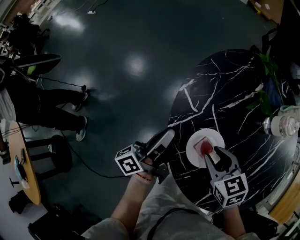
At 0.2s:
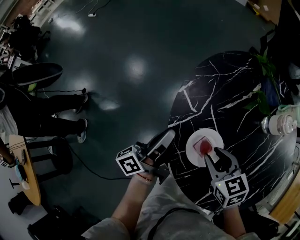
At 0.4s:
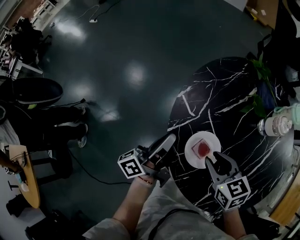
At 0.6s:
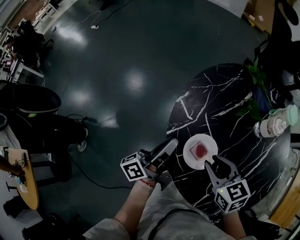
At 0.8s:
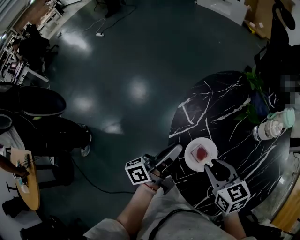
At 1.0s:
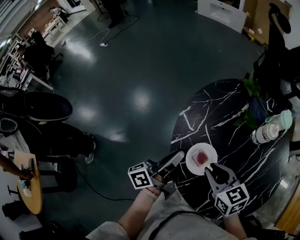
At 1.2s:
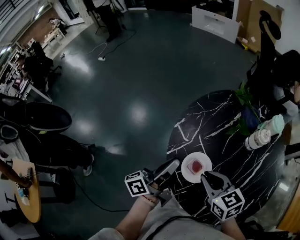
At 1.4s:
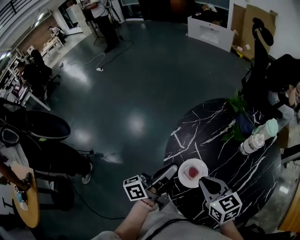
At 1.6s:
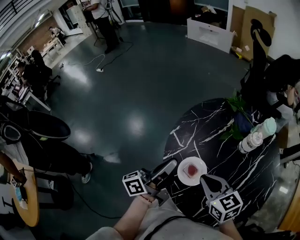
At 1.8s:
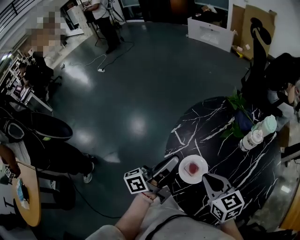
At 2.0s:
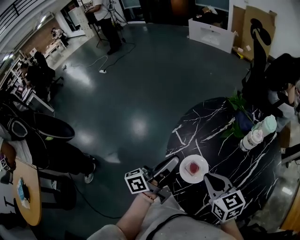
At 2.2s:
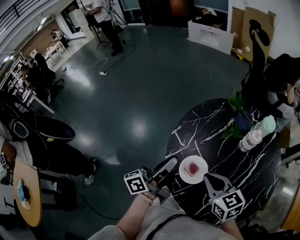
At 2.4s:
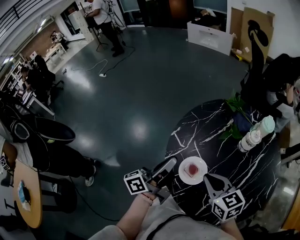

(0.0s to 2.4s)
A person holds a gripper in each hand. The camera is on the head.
0.0s - 1.2s: The grippers both shift upward by approximately 10 cm.
1.2s - 2.4s: The grippers stay close to where they were, moving slightly.

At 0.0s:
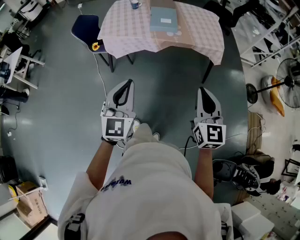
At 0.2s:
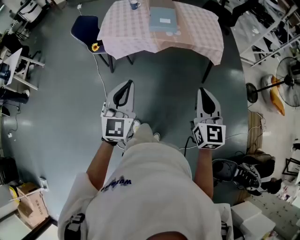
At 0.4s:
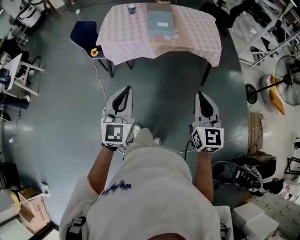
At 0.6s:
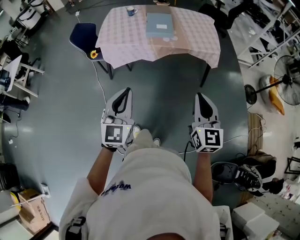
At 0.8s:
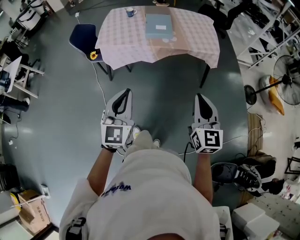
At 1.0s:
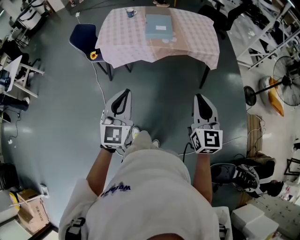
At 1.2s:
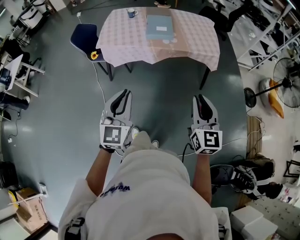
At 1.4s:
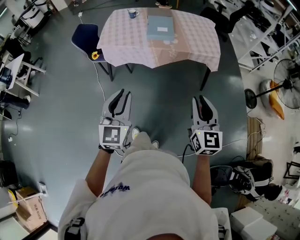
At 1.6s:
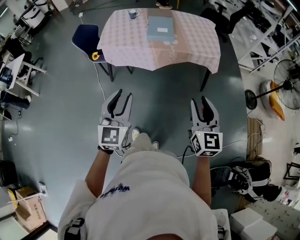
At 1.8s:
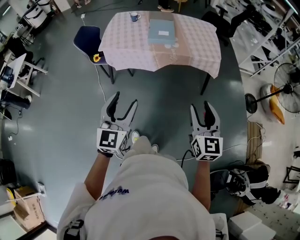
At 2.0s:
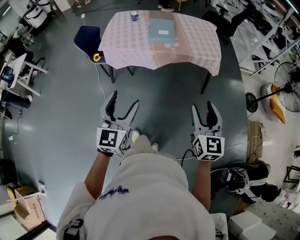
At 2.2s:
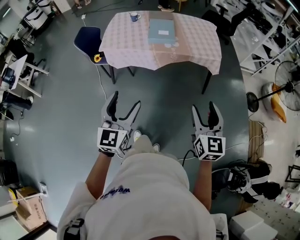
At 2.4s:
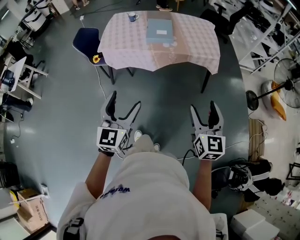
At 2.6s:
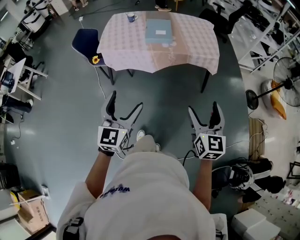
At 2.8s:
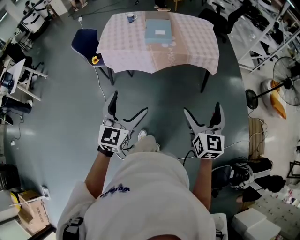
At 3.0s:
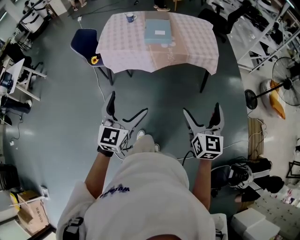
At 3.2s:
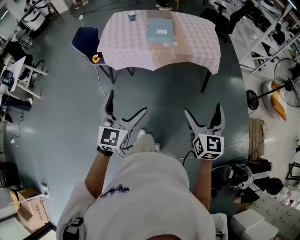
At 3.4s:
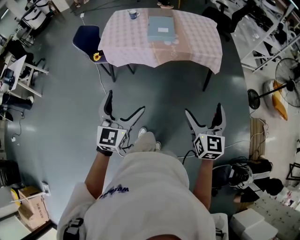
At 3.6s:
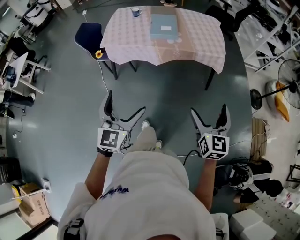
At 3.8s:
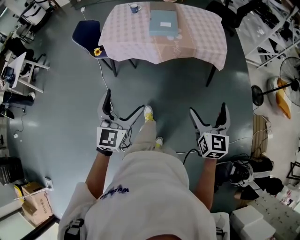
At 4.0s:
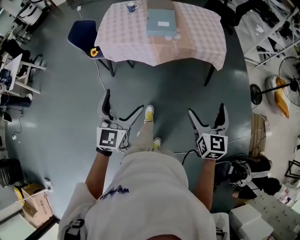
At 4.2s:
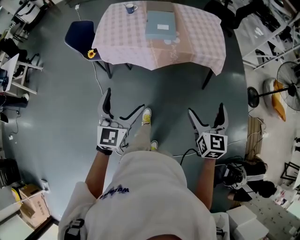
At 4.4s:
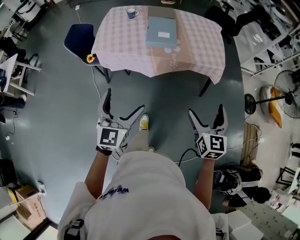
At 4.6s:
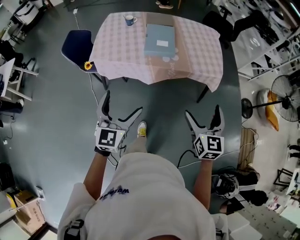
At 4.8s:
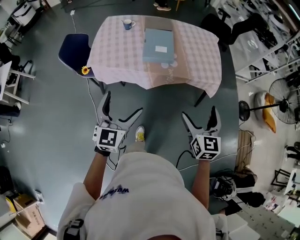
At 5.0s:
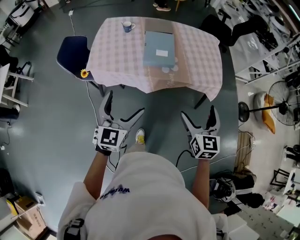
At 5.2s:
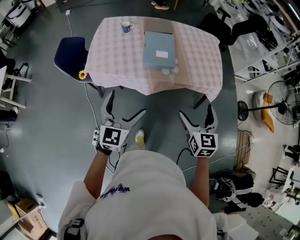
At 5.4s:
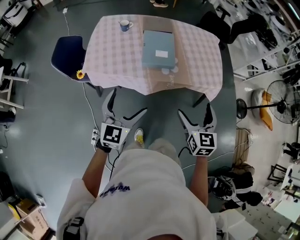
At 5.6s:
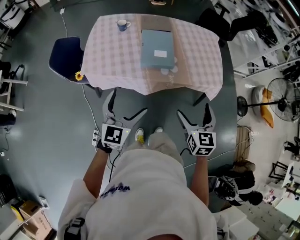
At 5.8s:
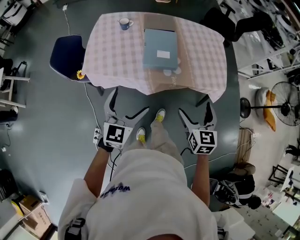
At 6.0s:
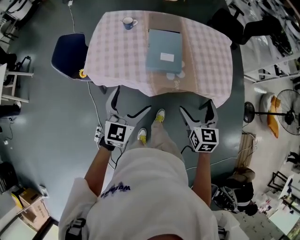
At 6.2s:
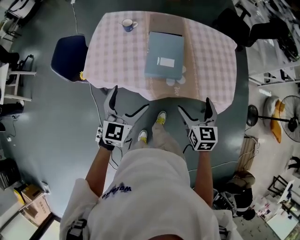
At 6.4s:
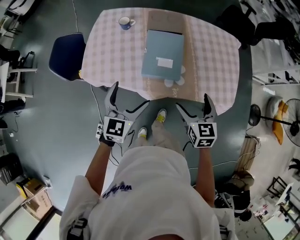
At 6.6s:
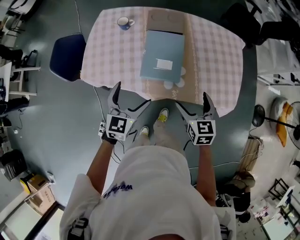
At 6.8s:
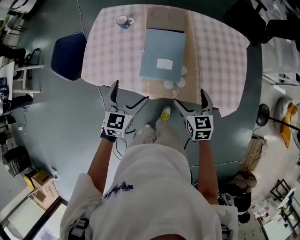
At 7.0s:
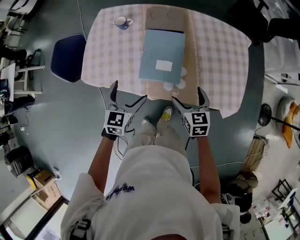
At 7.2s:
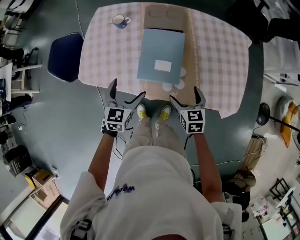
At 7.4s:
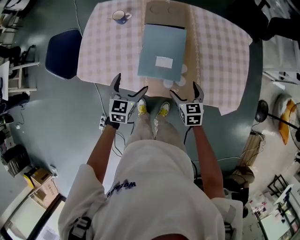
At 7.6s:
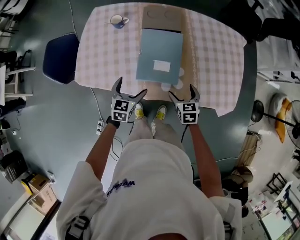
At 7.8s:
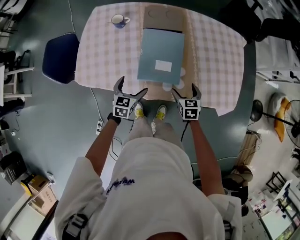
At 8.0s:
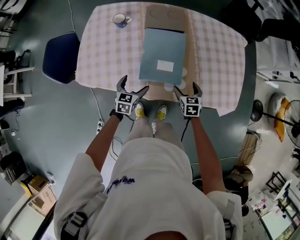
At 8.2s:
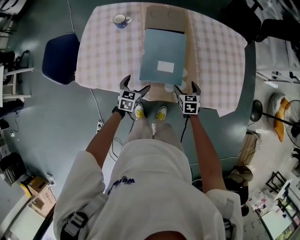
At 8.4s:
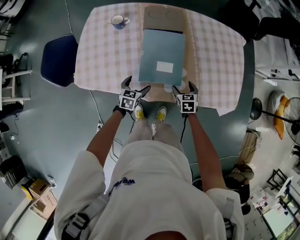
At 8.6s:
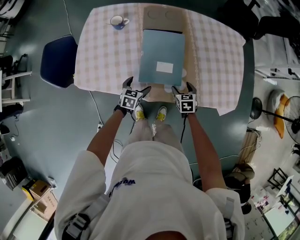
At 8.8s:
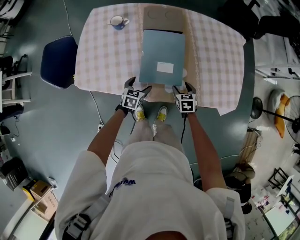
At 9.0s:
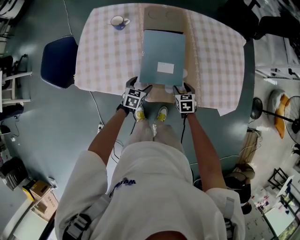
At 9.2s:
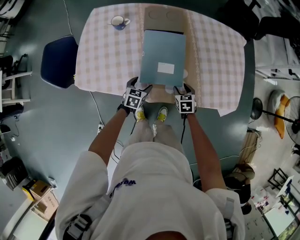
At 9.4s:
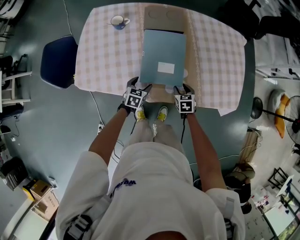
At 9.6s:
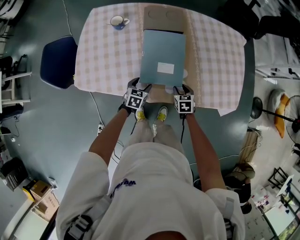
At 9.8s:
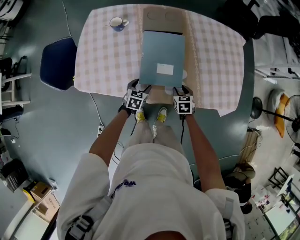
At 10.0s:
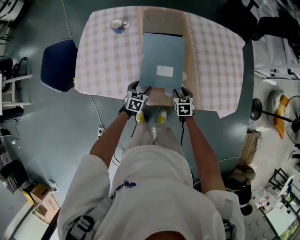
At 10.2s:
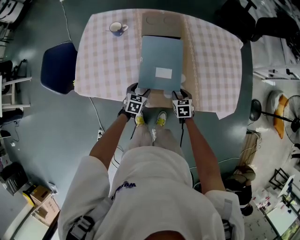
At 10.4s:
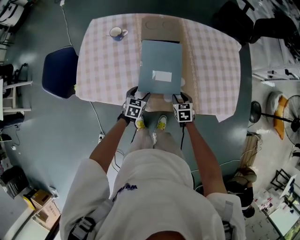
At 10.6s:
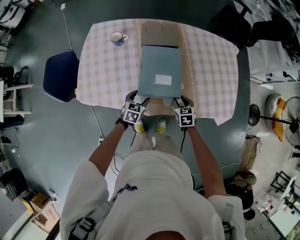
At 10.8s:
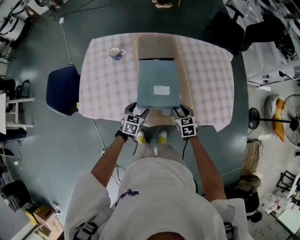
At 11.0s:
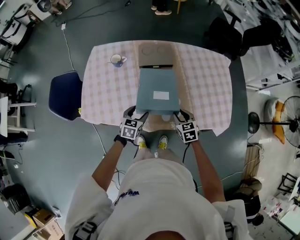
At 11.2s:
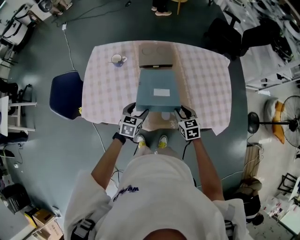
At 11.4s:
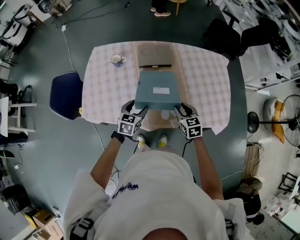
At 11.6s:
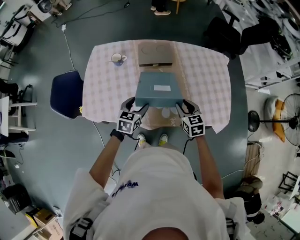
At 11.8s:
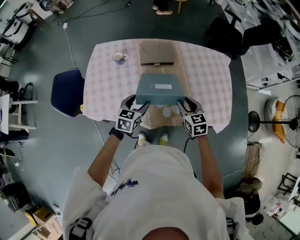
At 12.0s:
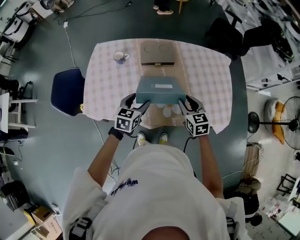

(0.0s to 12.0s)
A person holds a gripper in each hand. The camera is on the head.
0.0s - 1.6s: There are only small adjustments of the grippers.
1.6s - 3.0s: The left gripper opens its fingers; the right gripper opens.
3.0s - 4.4s: The two grippers go some 15 cm forward.
4.4s - 6.0s: The two grippers go some 25 cm forward.
6.0s - 7.6s: The grippers both shift downward and forward by roughly 30 cm. The left gripper turns by some 20 degrees.
7.6s - 9.0s: Both grippers move downward, approximately 10 cm. The right gripper closes.
9.0s - 10.4s: There are only small adjustments of the grippers.
10.4s - 12.0s: Both grippers move upward, some 20 cm. The right gripper swivels roughly 20 degrees.

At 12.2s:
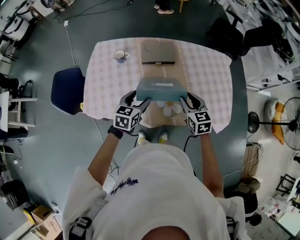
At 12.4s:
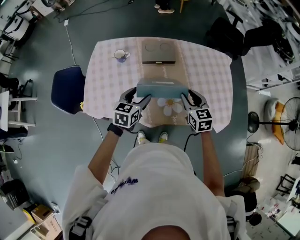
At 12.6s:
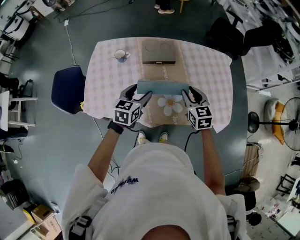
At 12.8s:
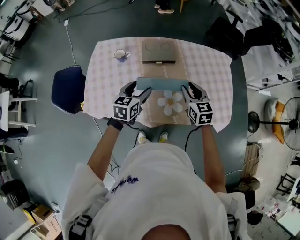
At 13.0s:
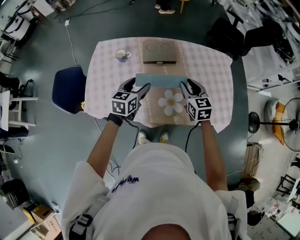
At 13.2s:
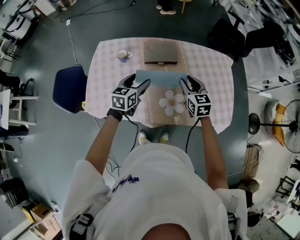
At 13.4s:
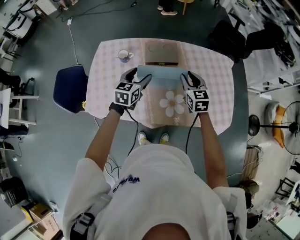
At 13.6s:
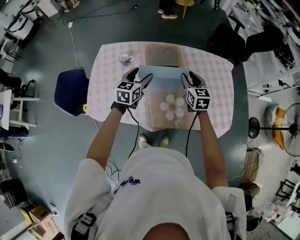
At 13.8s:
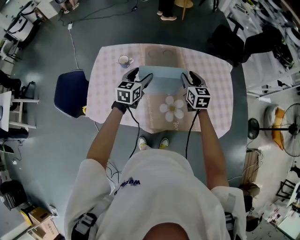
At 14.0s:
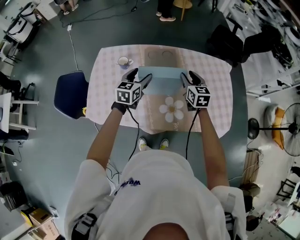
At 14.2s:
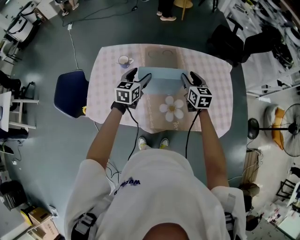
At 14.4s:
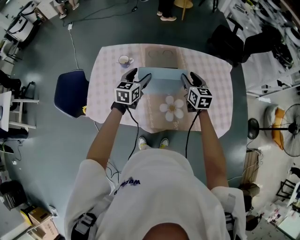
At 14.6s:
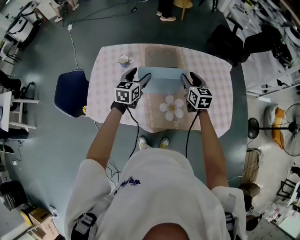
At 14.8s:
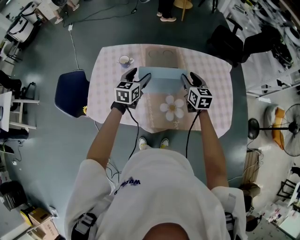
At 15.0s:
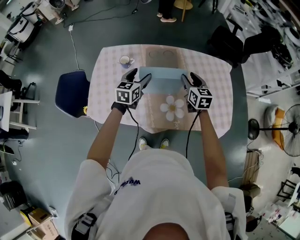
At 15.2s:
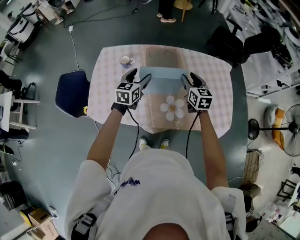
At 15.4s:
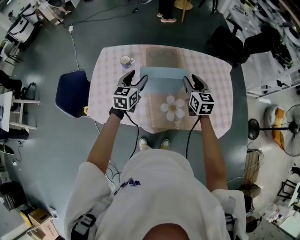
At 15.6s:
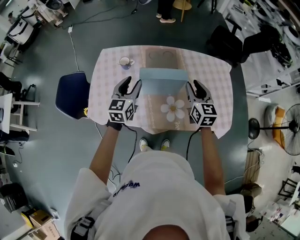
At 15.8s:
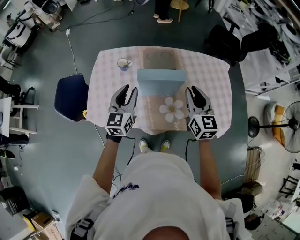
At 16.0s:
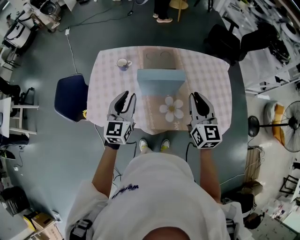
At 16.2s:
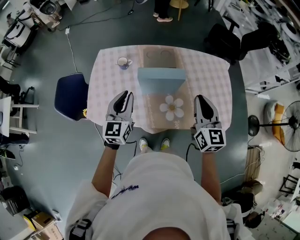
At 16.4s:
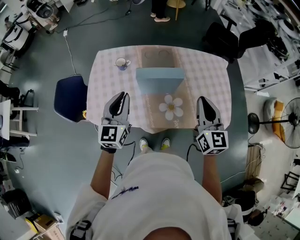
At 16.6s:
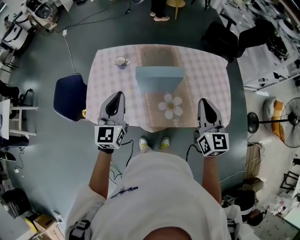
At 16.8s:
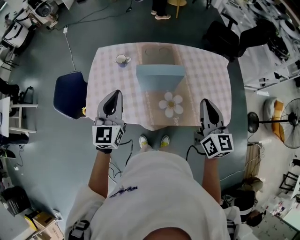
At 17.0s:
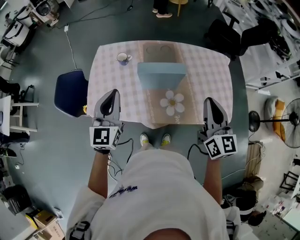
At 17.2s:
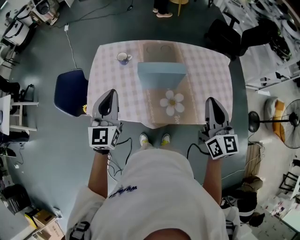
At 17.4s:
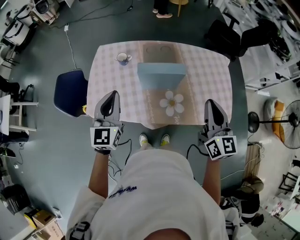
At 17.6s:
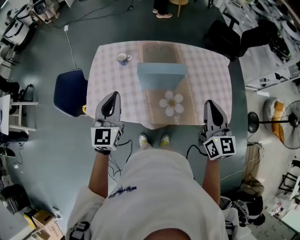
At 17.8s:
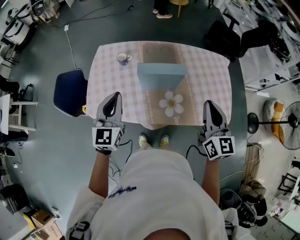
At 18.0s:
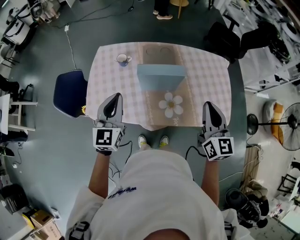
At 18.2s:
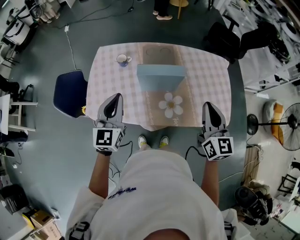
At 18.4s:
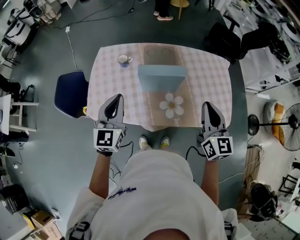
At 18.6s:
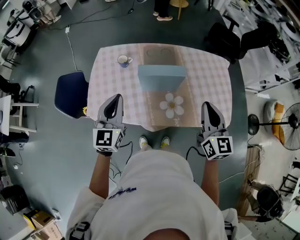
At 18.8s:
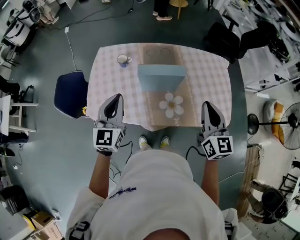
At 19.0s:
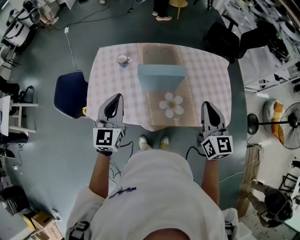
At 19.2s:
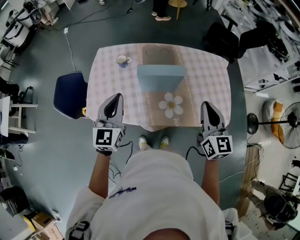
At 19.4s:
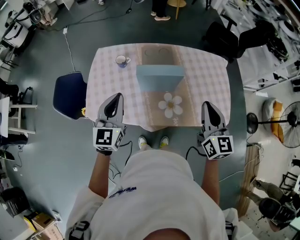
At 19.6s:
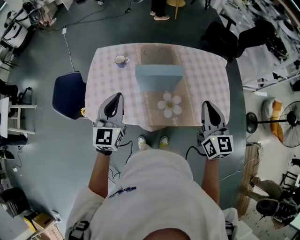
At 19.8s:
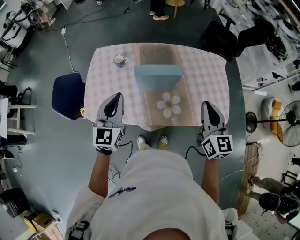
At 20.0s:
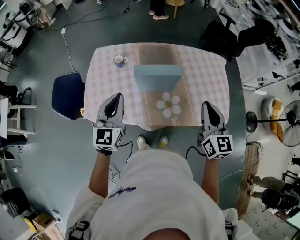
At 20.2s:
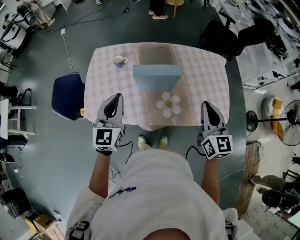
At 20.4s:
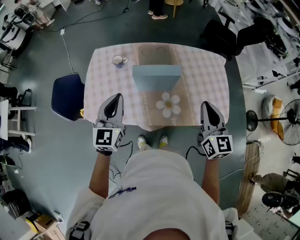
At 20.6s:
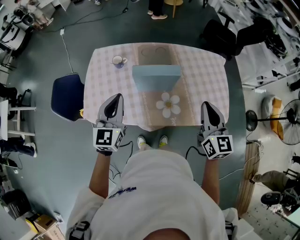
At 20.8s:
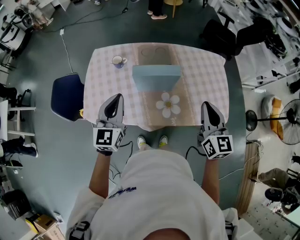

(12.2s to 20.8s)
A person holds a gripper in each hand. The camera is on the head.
12.2s - 13.6s: Both grippers move forward, about 10 cm.
13.6s - 15.0s: The grippers stay close to where they were, moving slightly.
15.0s - 16.6s: The two grippers go approximately 20 cm backward and upward. The left gripper changes its angle by approximately 20 degrees, and closes.
16.6s - 18.0s: The grippers stay close to where they were, moving slightly.
18.0s - 19.4s: Both grippers stay about where they are.
19.4s - 20.8s: The grippers stay close to where they were, moving slightly.

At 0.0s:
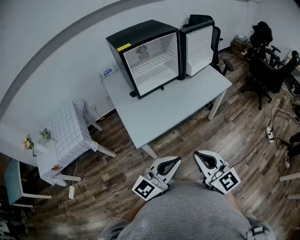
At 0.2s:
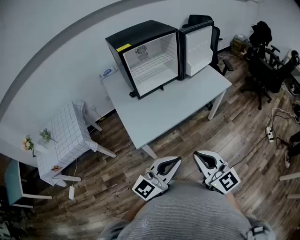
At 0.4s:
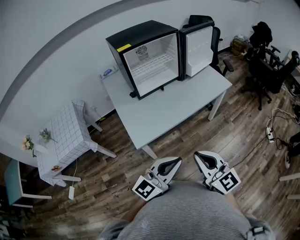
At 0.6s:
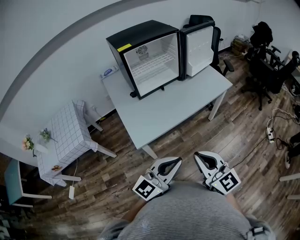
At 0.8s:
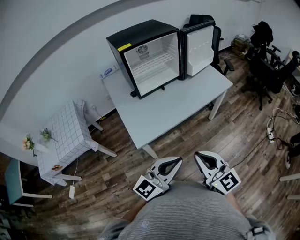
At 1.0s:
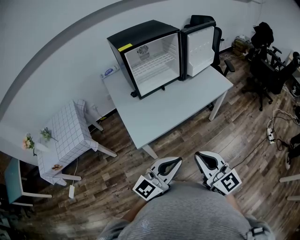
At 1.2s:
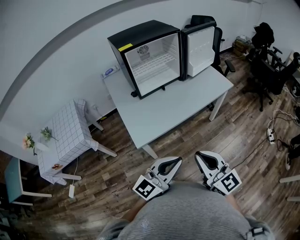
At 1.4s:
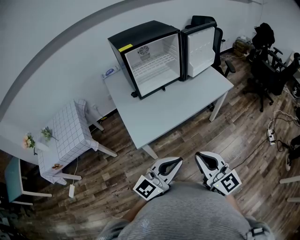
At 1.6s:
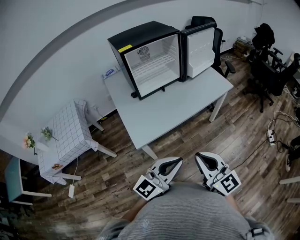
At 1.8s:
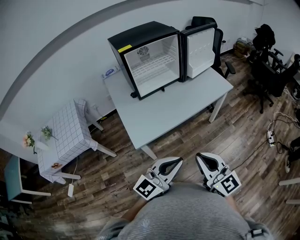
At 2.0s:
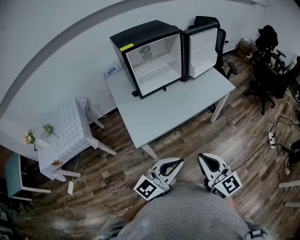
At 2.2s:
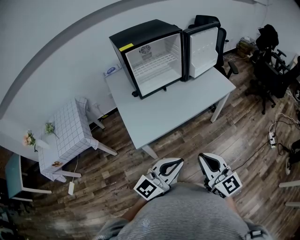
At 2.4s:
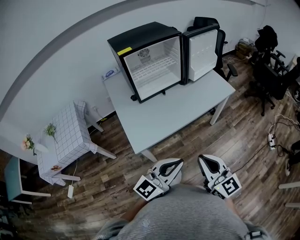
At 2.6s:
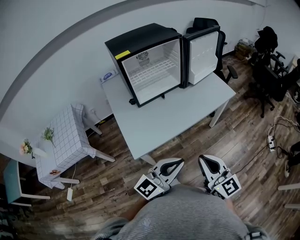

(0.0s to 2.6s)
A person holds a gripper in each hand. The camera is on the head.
0.0s - 1.2s: The grippers make only small movements.
1.2s - 2.6s: Both grippers move forward, some 5 cm.
